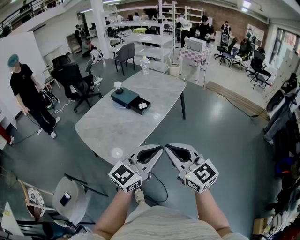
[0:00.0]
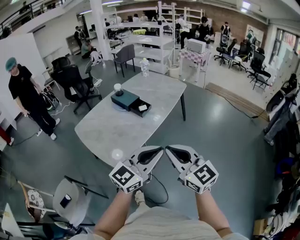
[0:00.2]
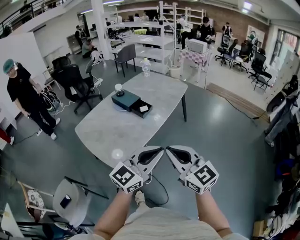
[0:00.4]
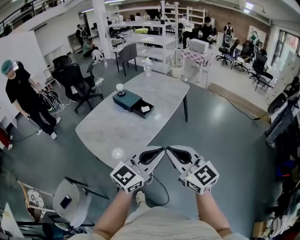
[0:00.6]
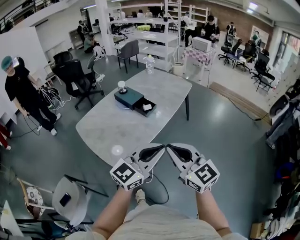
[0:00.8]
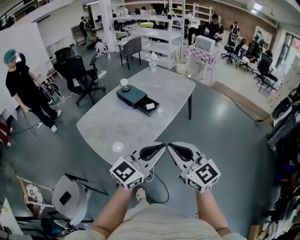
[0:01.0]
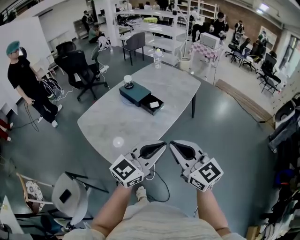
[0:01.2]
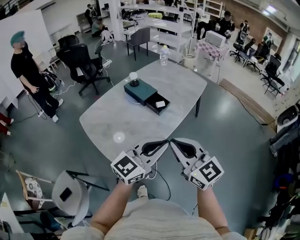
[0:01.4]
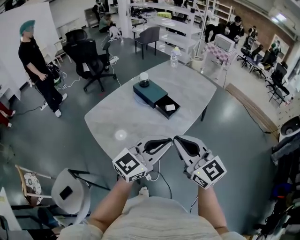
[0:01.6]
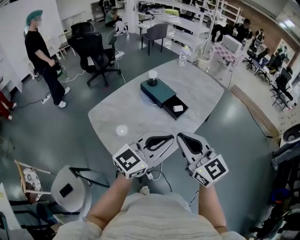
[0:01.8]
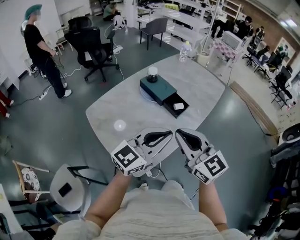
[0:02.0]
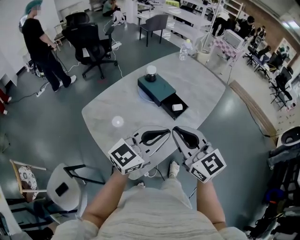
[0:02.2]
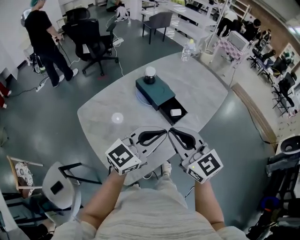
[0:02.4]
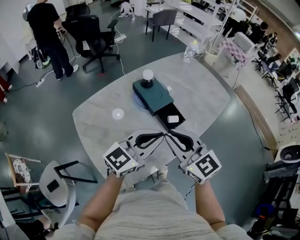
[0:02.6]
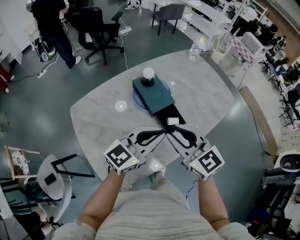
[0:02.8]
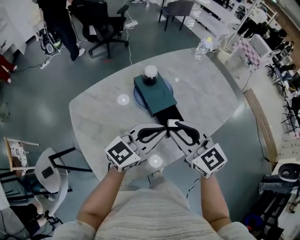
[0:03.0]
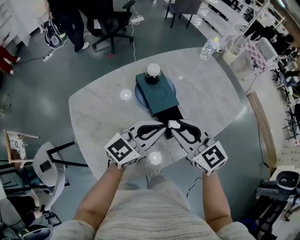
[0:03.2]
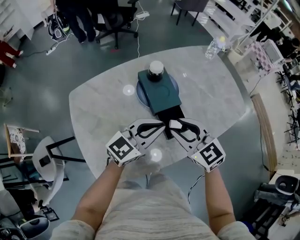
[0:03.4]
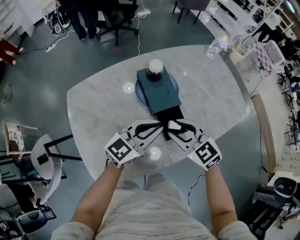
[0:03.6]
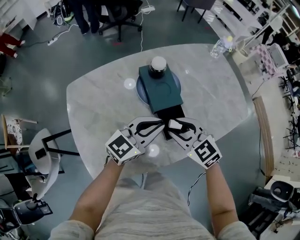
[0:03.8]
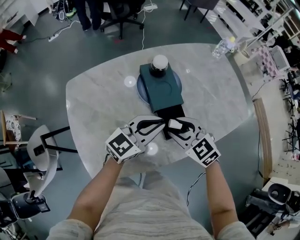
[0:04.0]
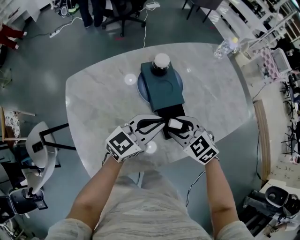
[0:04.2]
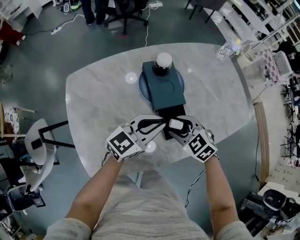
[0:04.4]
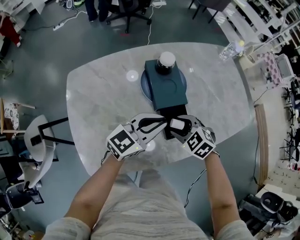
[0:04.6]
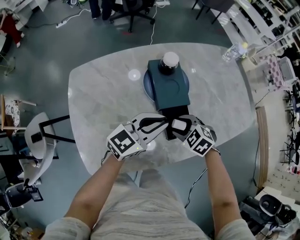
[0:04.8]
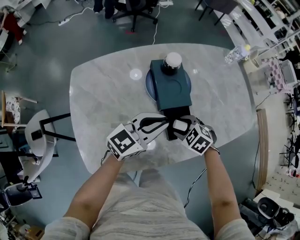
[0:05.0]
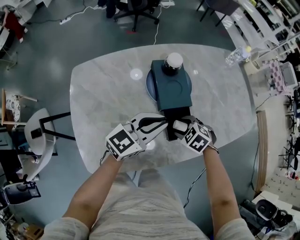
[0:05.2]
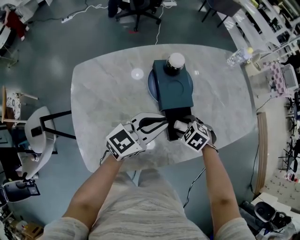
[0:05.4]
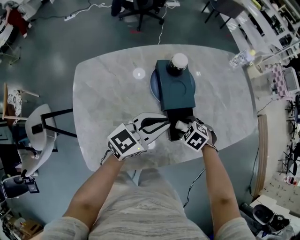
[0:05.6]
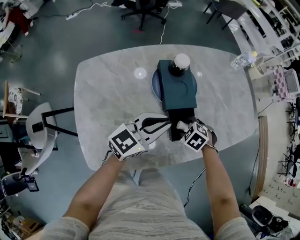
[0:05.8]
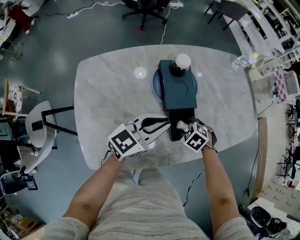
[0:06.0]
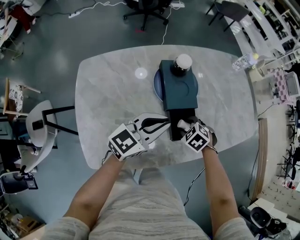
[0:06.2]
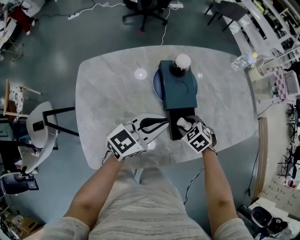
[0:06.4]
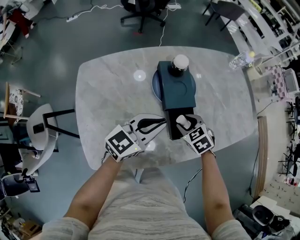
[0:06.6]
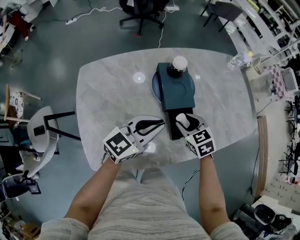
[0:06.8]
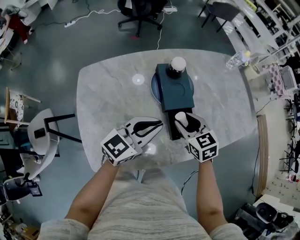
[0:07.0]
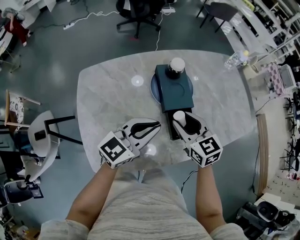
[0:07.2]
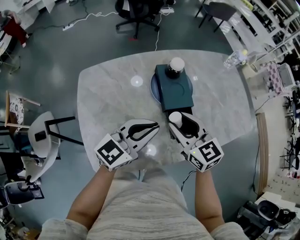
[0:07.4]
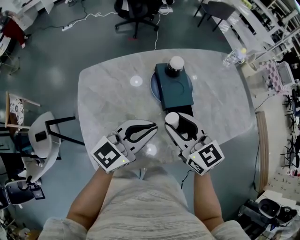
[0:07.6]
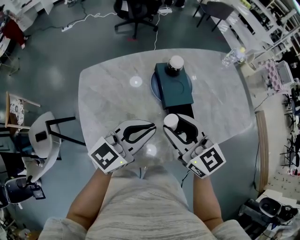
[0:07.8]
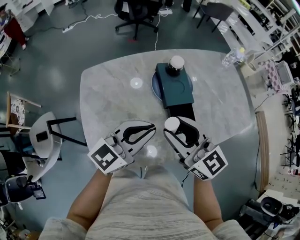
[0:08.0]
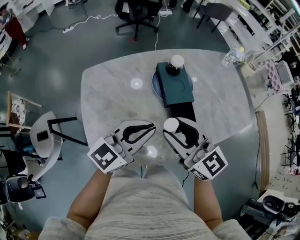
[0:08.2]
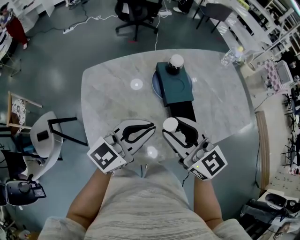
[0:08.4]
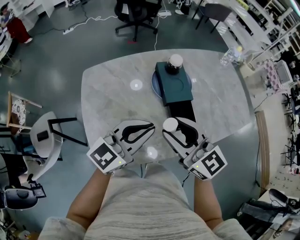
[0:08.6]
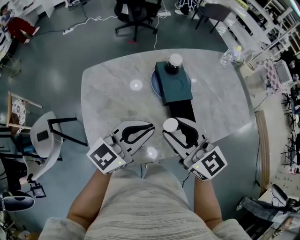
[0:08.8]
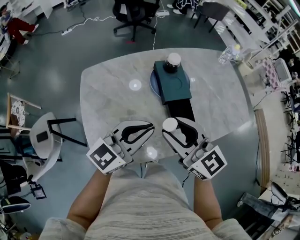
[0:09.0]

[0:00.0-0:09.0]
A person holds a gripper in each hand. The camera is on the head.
0:00.0 to 0:01.6: The grippers both shift forward and to the left by about 20 cm.
0:01.6 to 0:03.0: Both grippers move forward, about 30 cm. The right gripper changes its angle by approximately 20 degrees, and opens.
0:03.0 to 0:04.4: The left gripper moves downward and forward, approximately 10 cm. The right gripper shifts about 20 cm downward, tips its fingers downward by roughly 40 degrees, and opens.
0:04.4 to 0:06.0: The right gripper goes about 10 cm downward, and rotates roughly 30 degrees.
0:06.0 to 0:07.6: The right gripper heads upward, covering some 25 cm, and tilts its fingers approximately 60 degrees upward. The left gripper ends up some 10 cm from where it was.
0:07.6 to 0:09.0: Both grippers travel together backward, about 5 cm.

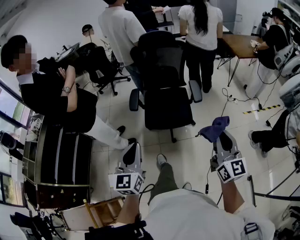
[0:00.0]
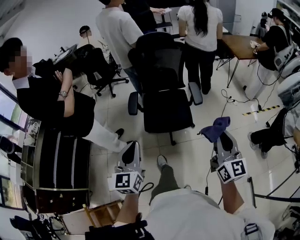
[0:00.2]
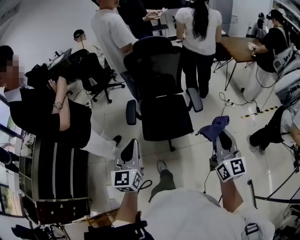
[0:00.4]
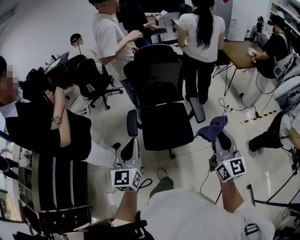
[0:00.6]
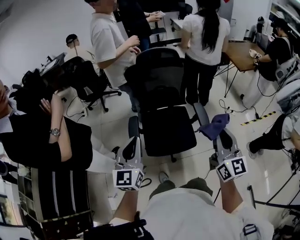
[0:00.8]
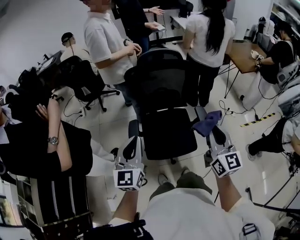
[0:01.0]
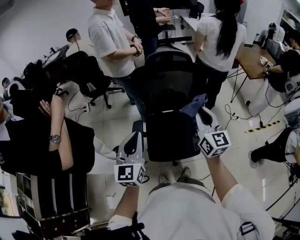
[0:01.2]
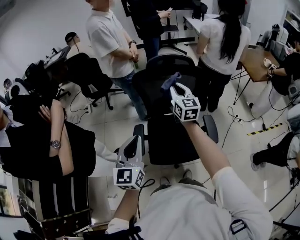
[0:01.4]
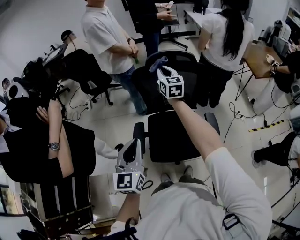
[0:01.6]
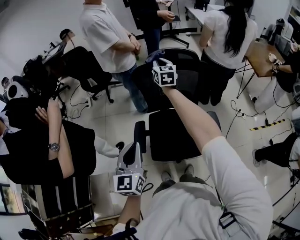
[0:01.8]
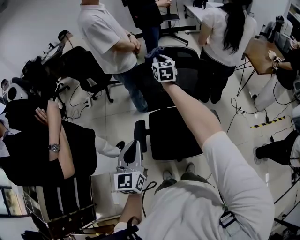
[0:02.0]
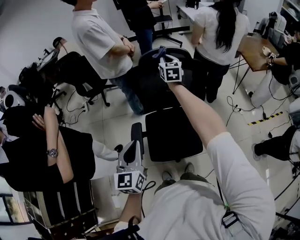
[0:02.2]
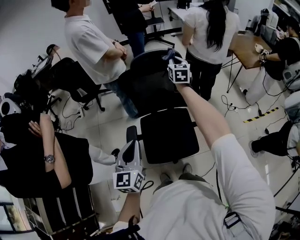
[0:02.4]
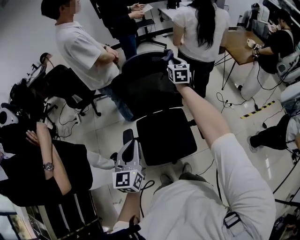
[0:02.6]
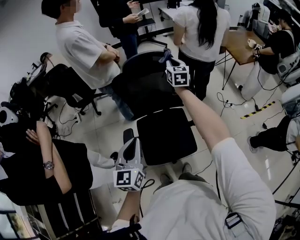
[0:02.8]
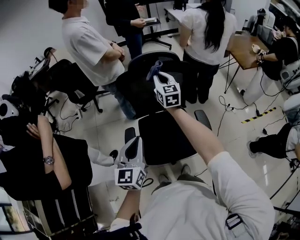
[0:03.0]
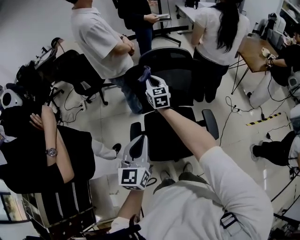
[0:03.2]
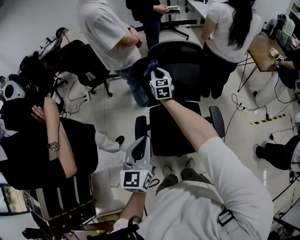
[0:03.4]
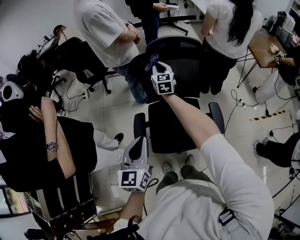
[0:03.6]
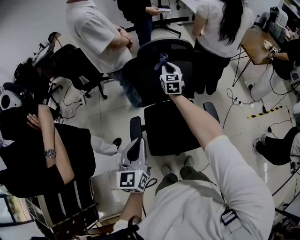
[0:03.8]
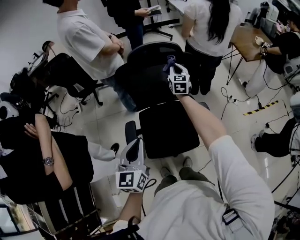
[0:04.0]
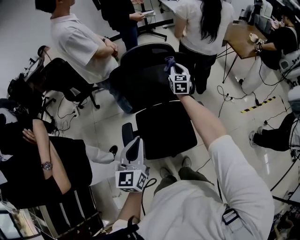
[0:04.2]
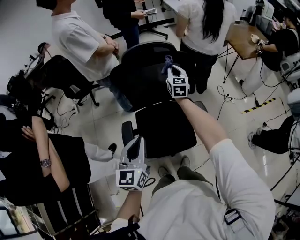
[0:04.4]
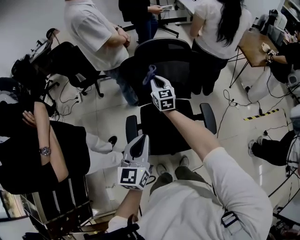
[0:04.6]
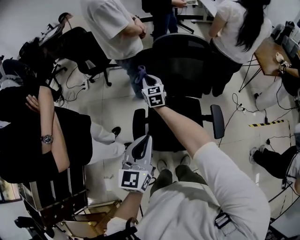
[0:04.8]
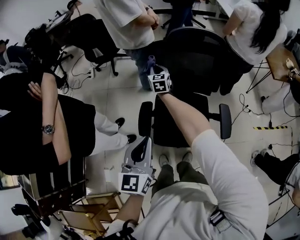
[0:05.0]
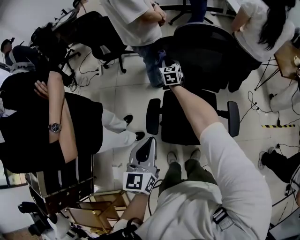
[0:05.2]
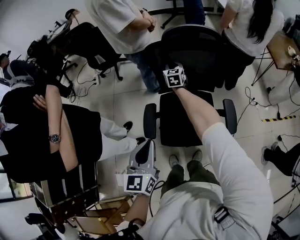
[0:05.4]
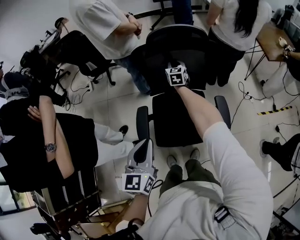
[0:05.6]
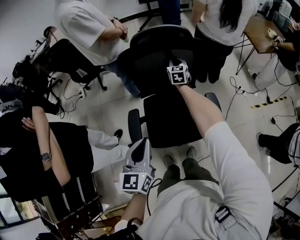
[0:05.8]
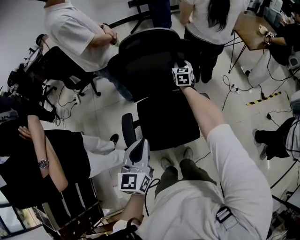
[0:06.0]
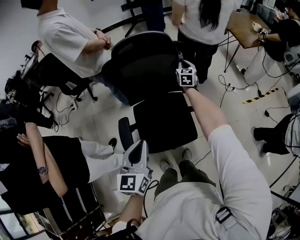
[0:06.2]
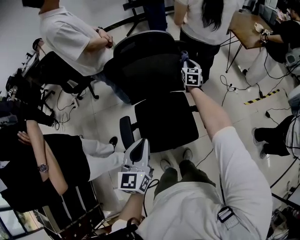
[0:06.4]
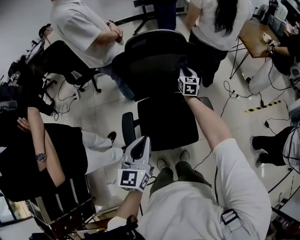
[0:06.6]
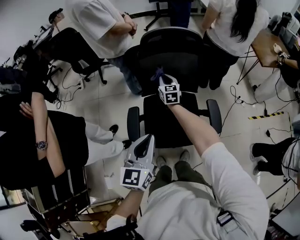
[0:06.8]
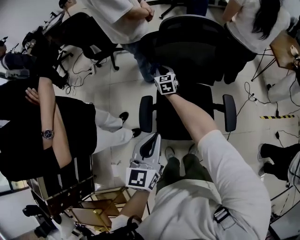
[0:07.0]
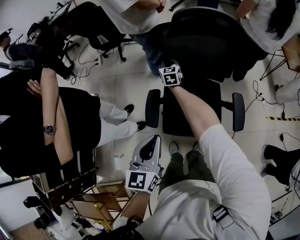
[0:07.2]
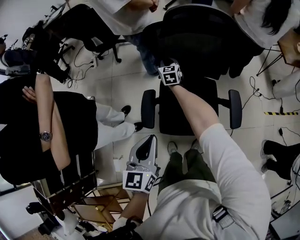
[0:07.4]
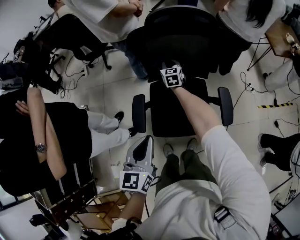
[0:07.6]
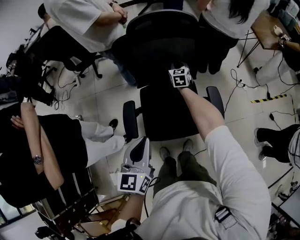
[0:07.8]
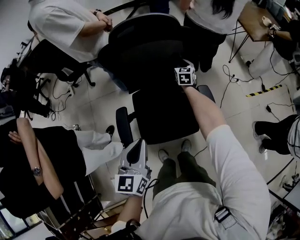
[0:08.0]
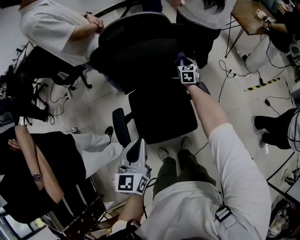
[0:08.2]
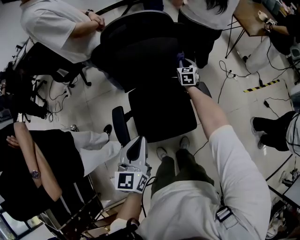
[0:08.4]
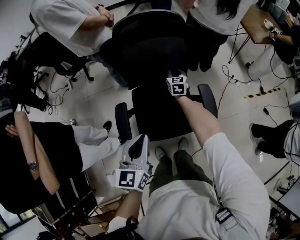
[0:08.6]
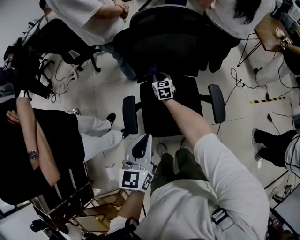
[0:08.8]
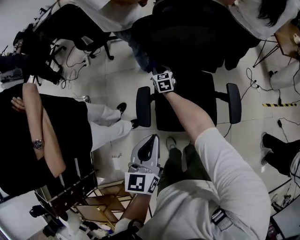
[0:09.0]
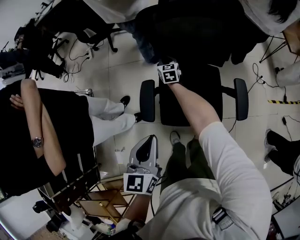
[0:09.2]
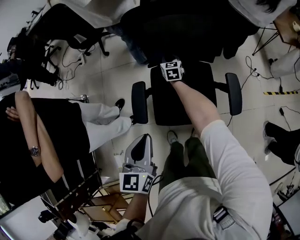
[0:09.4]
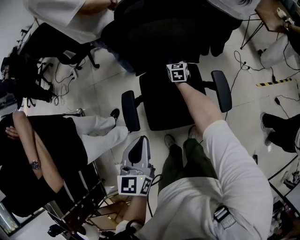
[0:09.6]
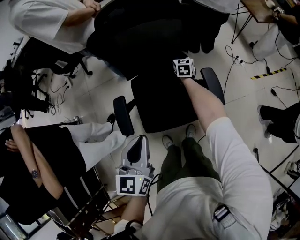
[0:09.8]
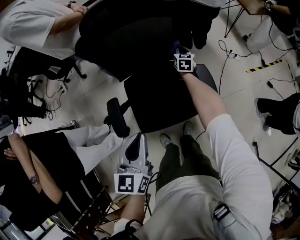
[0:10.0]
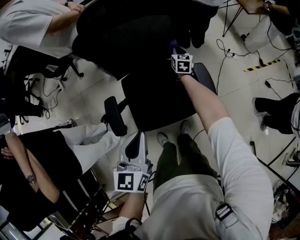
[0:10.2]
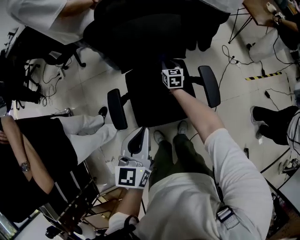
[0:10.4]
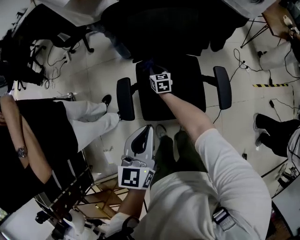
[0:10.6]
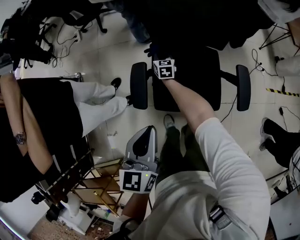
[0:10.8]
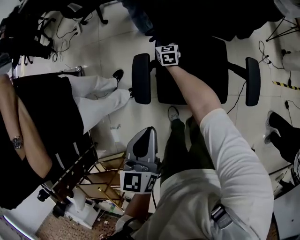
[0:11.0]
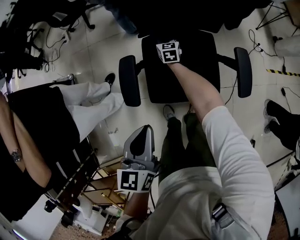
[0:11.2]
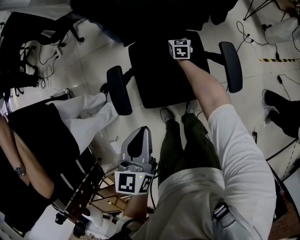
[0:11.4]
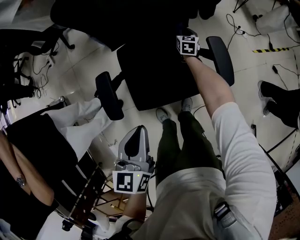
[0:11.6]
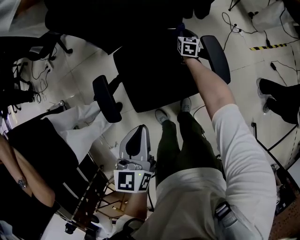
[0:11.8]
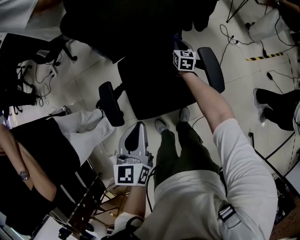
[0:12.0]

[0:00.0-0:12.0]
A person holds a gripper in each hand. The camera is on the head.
0:00.0 to 0:01.6: The pair of grippers is taken forward, roughly 70 cm. The right gripper changes its angle by approximately 20 degrees.
0:01.6 to 0:03.0: The left gripper moves roughly 5 cm. Meanwhile the right gripper moves roughly 15 cm to the right and comes back.
0:03.0 to 0:04.4: The right gripper moves downward, to the right and forward, roughly 15 cm.
0:04.4 to 0:06.0: The left gripper shifts approximately 5 cm forward, while the right gripper heads downward and forward, covering about 15 cm, and travels to the left and back again, roughly 30 cm each way.
0:06.0 to 0:07.6: The left gripper travels forward by roughly 5 cm. Meanwhile the right gripper moves left and right over about 35 cm, changing direction 2 times.
0:07.6 to 0:09.0: The right gripper heads downward, covering about 10 cm, and moves about 30 cm to the right and comes back, while the left gripper moves some 5 cm.
0:09.0 to 0:10.4: The left gripper moves forward, about 5 cm, and moves about 5 cm to the right and comes back. The right gripper heads to the right, covering roughly 20 cm.
0:10.4 to 0:12.0: The left gripper shifts some 10 cm downward and forward, and travels to the left and back again, some 10 cm each way, while the right gripper moves left and right over about 40 cm, changing direction 2 times.

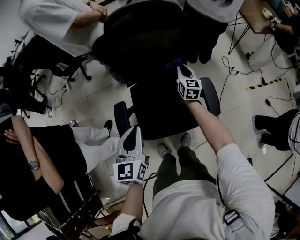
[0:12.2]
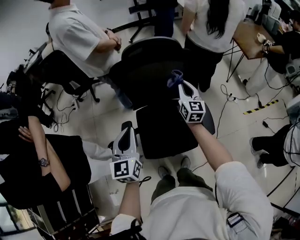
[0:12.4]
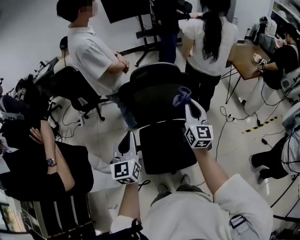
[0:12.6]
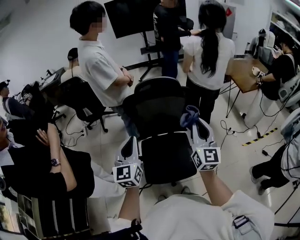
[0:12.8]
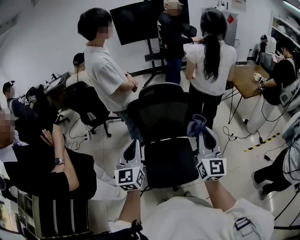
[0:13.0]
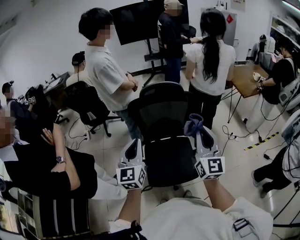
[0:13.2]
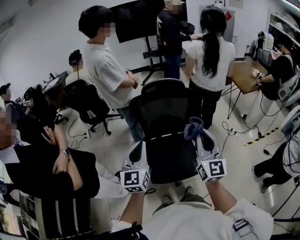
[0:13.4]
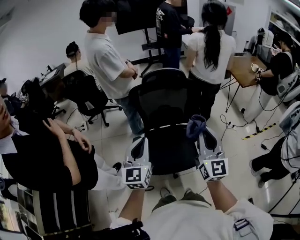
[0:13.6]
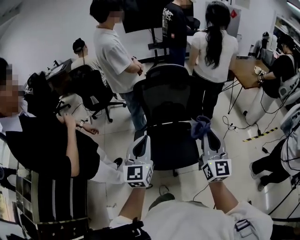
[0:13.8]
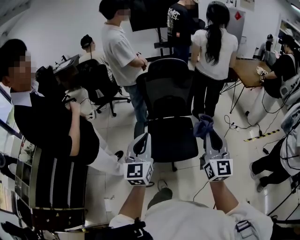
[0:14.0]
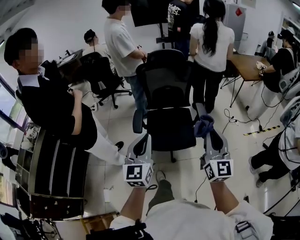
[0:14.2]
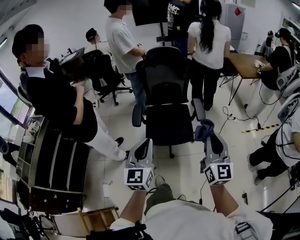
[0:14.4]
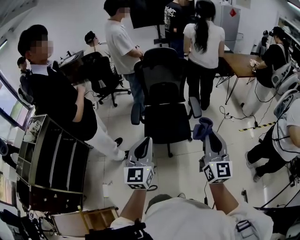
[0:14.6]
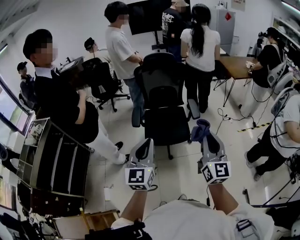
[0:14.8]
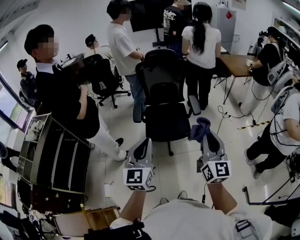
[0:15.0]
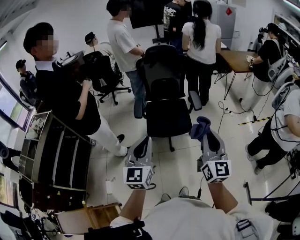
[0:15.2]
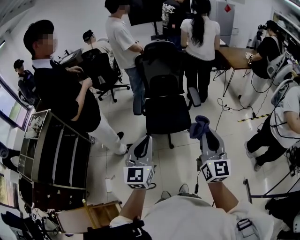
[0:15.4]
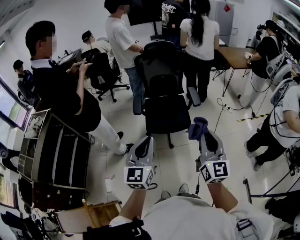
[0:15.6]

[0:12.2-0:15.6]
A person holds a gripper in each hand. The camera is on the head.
0:12.2 to 0:13.8: Both grippers are carried backward, roughly 60 cm. The right gripper is displaced upward by about 35 cm, and tilts its fingers some 40 degrees upward. The left gripper turns by some 30 degrees.
0:13.8 to 0:15.6: Both grippers travel together backward, roughly 40 cm.
